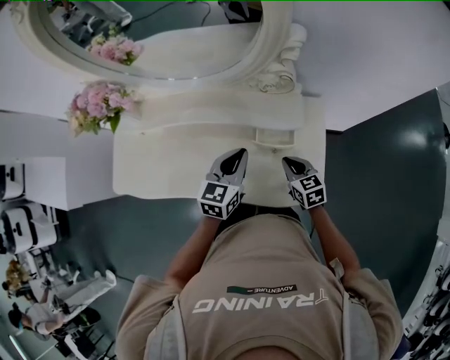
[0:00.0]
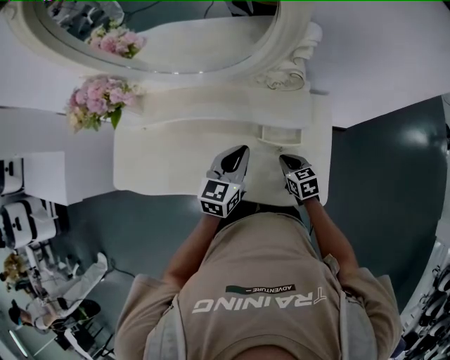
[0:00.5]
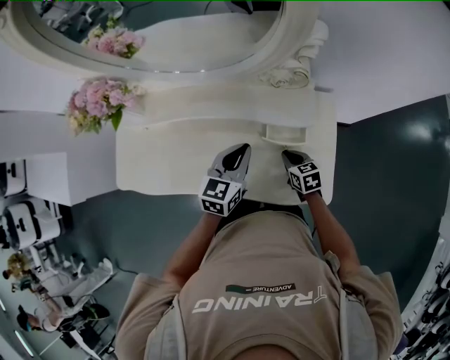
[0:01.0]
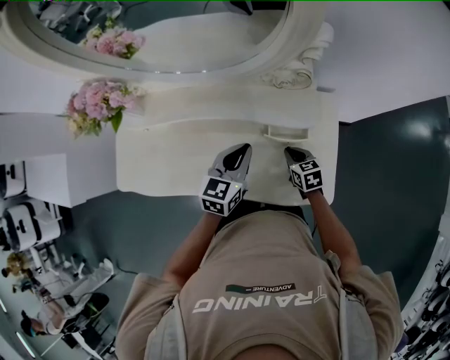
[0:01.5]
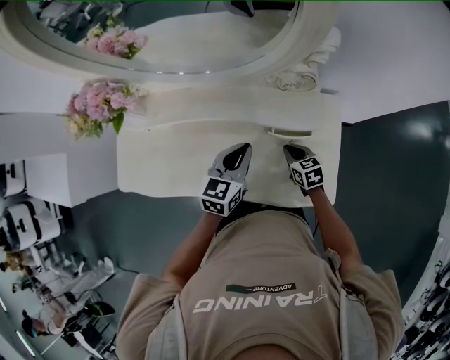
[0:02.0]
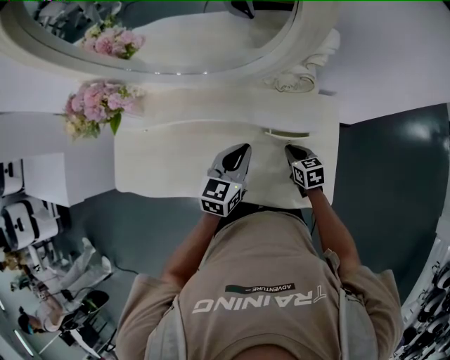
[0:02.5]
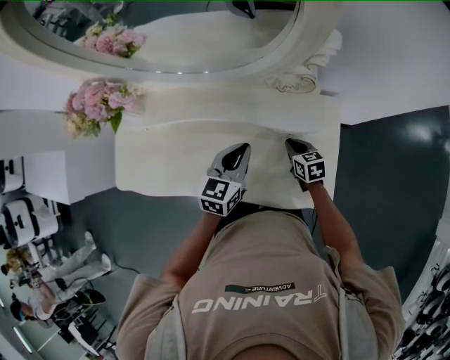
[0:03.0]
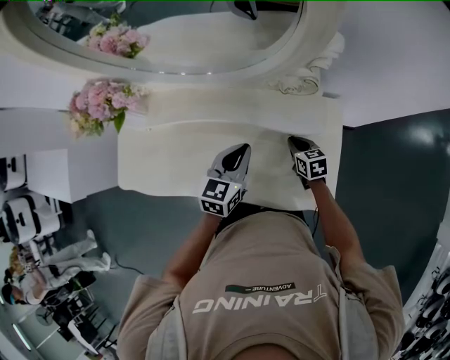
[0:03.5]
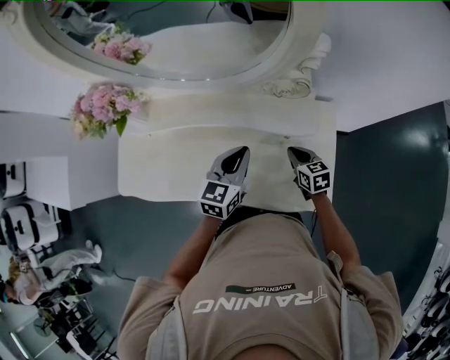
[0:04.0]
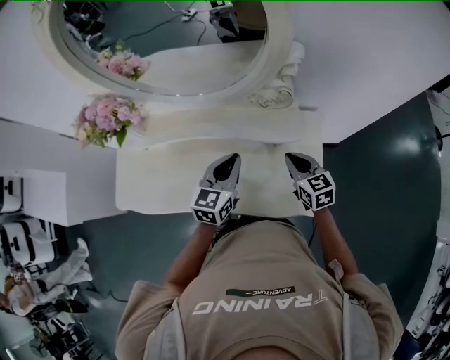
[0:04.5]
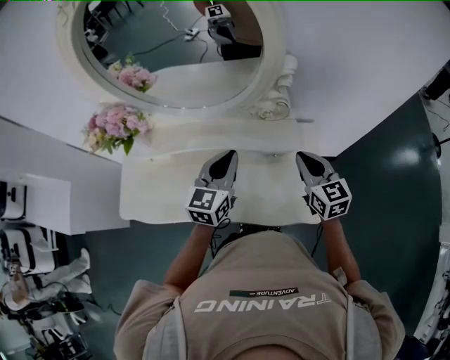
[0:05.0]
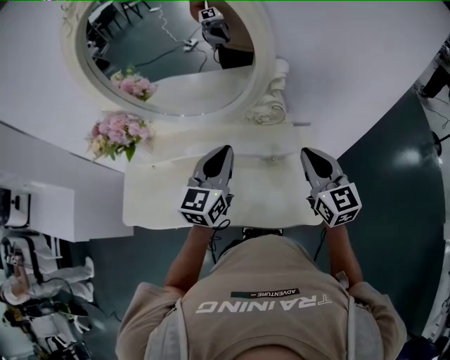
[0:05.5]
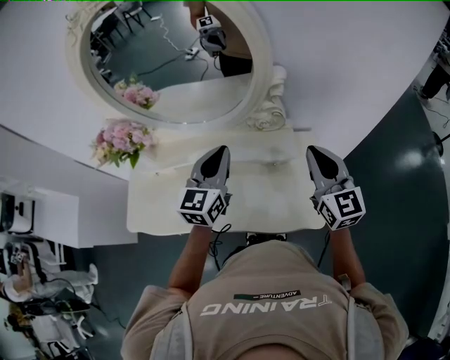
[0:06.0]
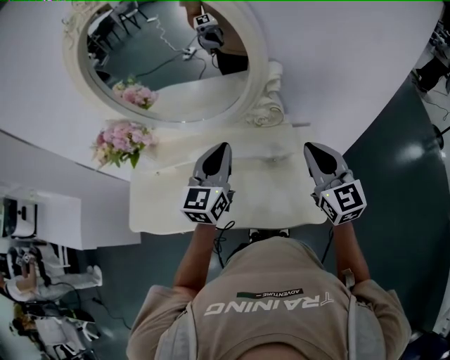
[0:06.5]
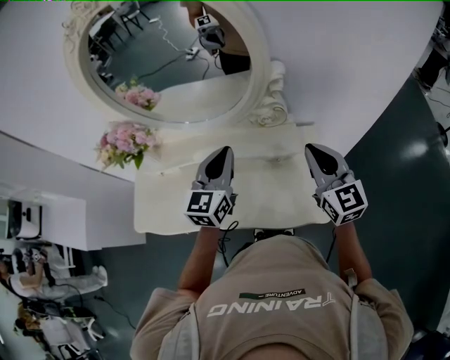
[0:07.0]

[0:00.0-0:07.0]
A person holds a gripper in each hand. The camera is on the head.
0:00.0 to 0:02.0: The right gripper is displaced downward and forward by some 10 cm.
0:02.0 to 0:03.5: The grippers stay close to where they were, moving slightly.
0:03.5 to 0:05.0: The left gripper heads upward, covering about 10 cm; the right gripper heads upward, covering roughly 25 cm, and turns by about 30 degrees.
0:05.0 to 0:07.0: The right gripper goes some 10 cm upward. Meanwhile the left gripper travels upward by about 5 cm.

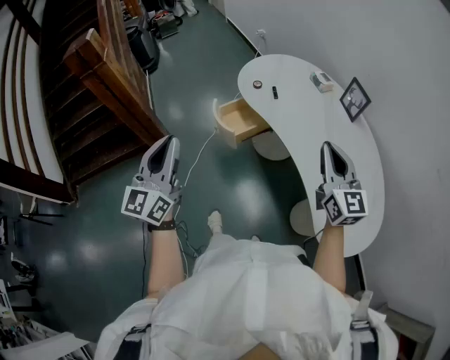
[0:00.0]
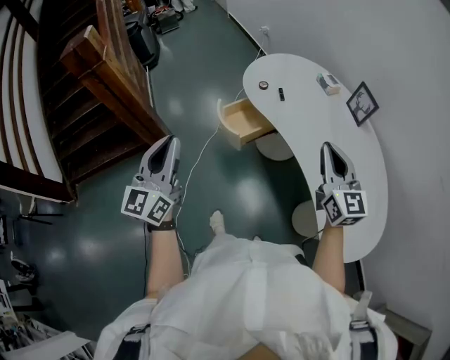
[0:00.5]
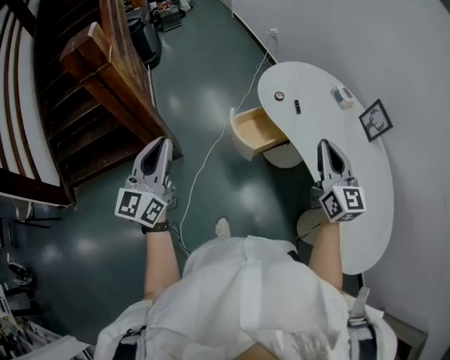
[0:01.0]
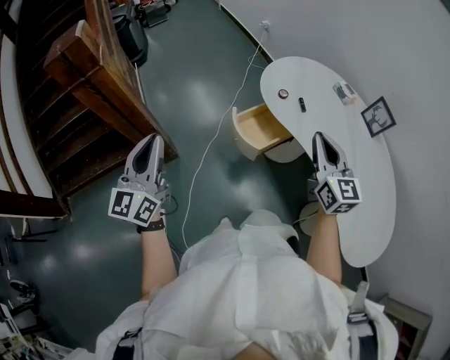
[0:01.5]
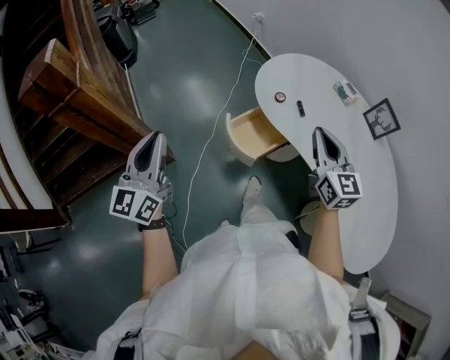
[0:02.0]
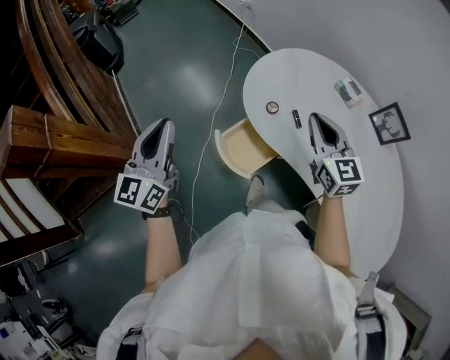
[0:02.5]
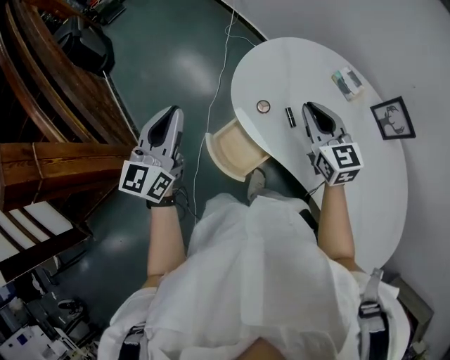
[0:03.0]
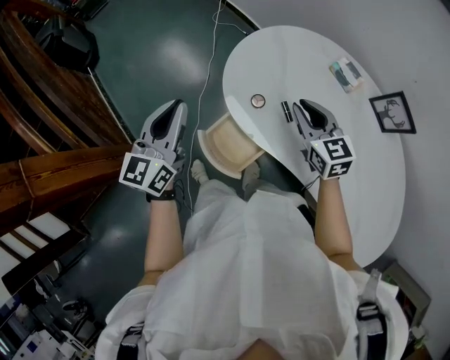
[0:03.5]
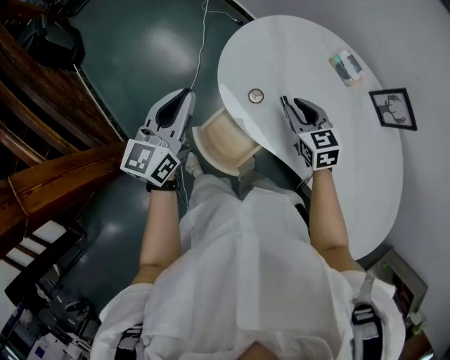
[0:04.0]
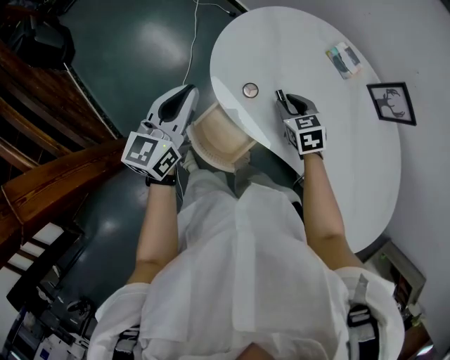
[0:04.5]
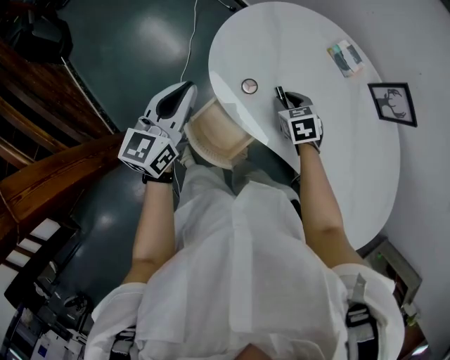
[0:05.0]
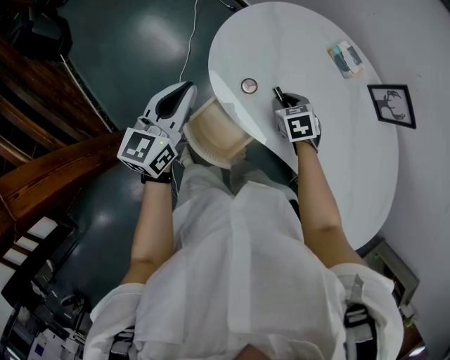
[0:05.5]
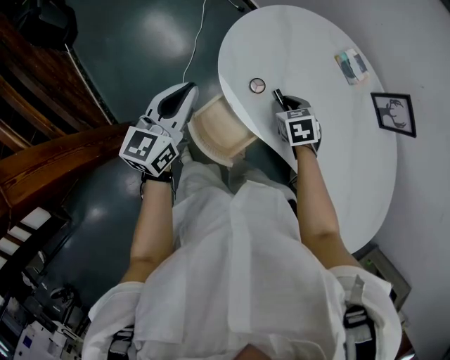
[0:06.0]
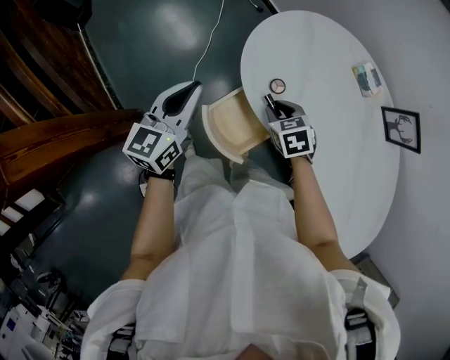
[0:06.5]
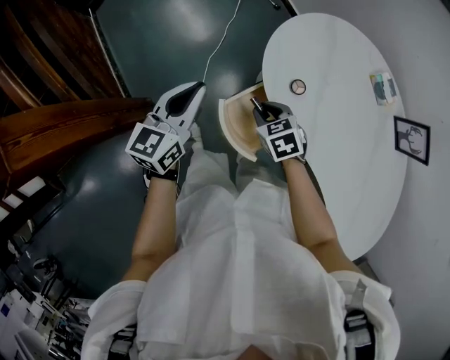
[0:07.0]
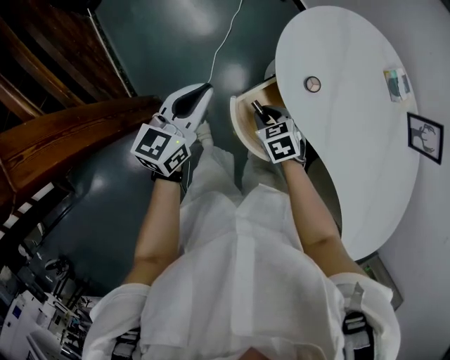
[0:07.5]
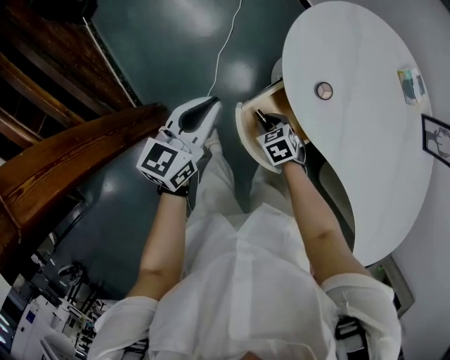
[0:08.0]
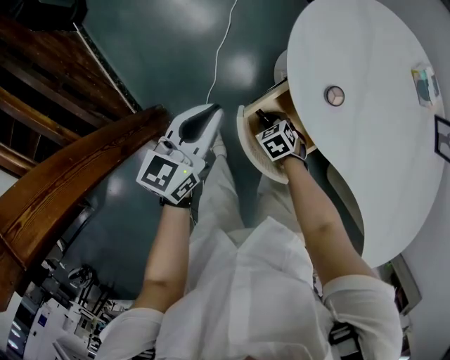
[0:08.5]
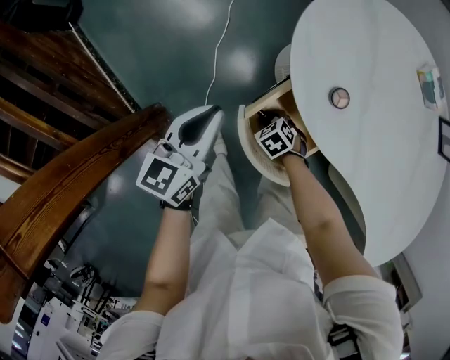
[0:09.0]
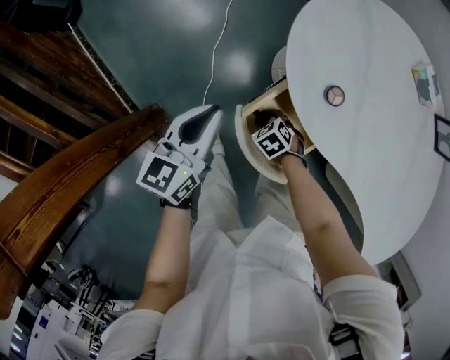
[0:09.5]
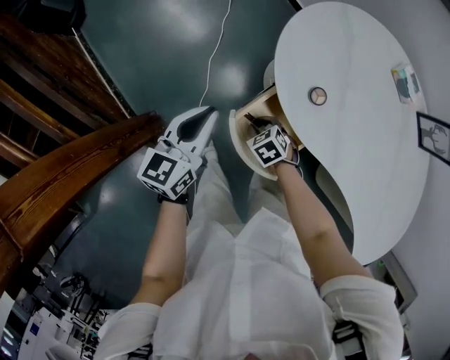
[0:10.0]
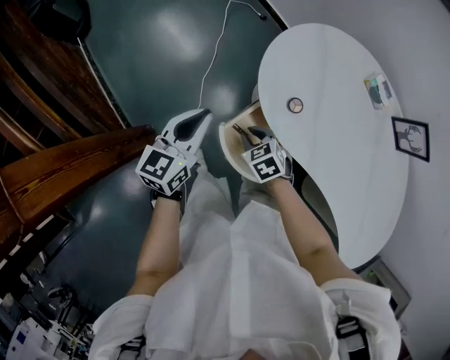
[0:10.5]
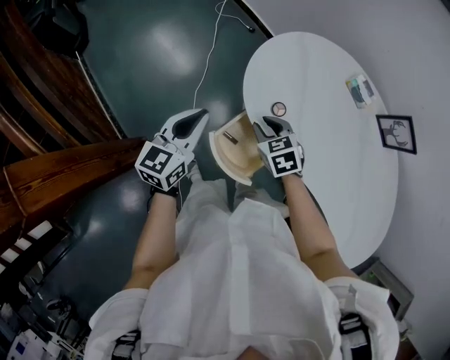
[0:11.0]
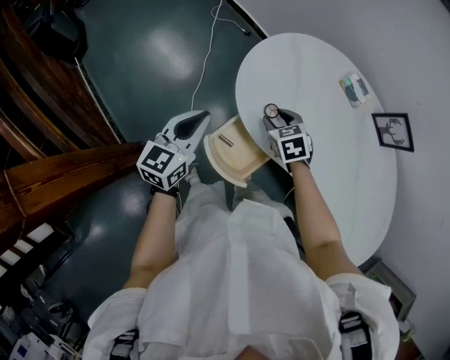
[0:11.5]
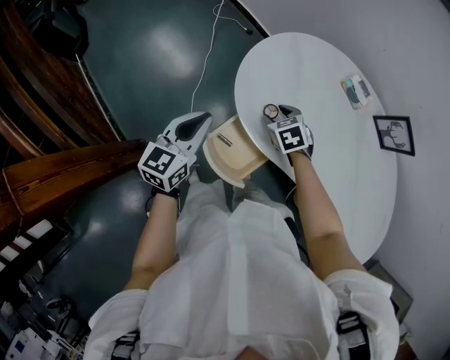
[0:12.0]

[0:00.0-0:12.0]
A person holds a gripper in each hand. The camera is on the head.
0:00.0 to 0:02.0: The grippers both shift forward and to the left by some 30 cm.
0:02.0 to 0:04.0: The left gripper goes about 40 cm forward and to the right, and swivels approximately 30 degrees. Meanwhile the right gripper is displaced forward and downward by about 30 cm, and rotates roughly 30 degrees.
0:04.0 to 0:06.0: The right gripper goes about 10 cm downward, and swivels approximately 20 degrees. The left gripper travels downward by some 5 cm.
0:06.0 to 0:08.0: The right gripper goes roughly 25 cm to the left and downward. The left gripper moves to the left and downward, about 15 cm.
0:08.0 to 0:10.0: The right gripper moves about 10 cm downward and comes back.
0:10.0 to 0:12.0: The right gripper goes approximately 25 cm upward, to the right and forward, and opens its fingers, while the left gripper moves upward and to the right, approximately 10 cm.

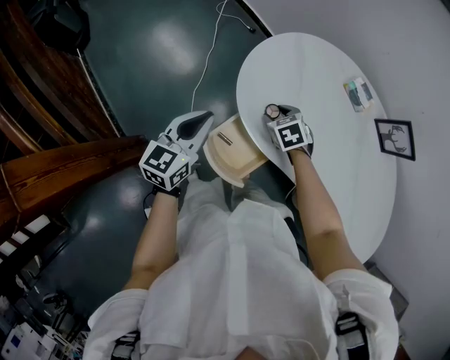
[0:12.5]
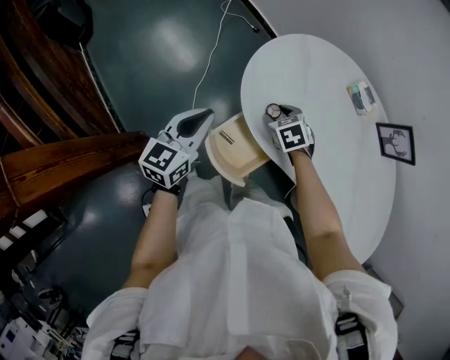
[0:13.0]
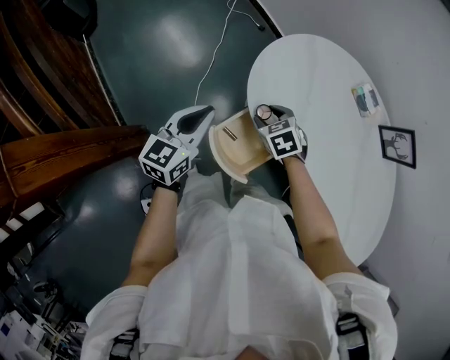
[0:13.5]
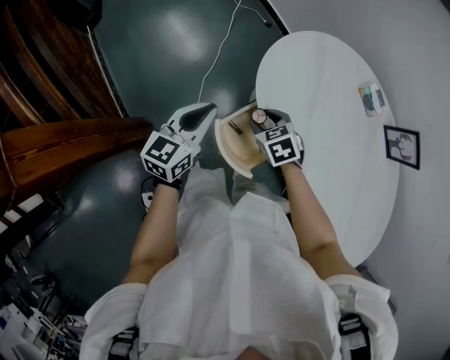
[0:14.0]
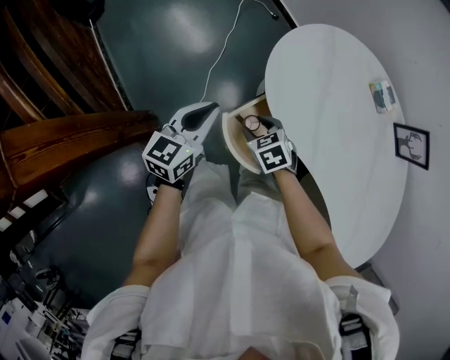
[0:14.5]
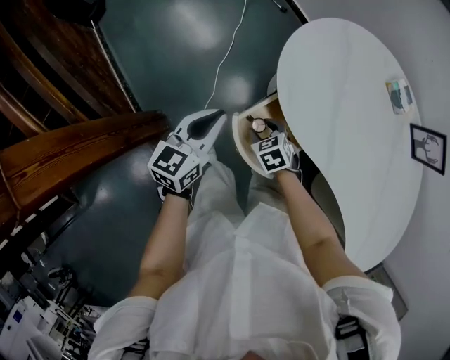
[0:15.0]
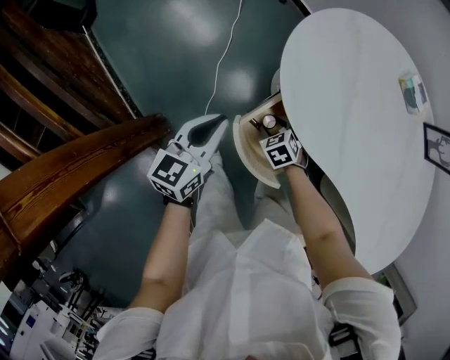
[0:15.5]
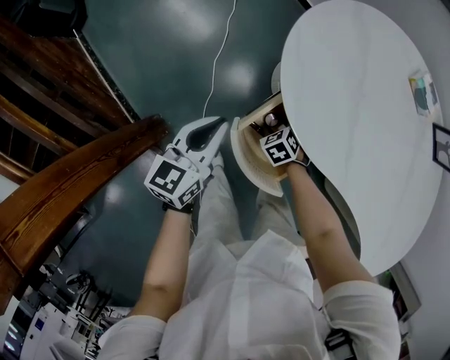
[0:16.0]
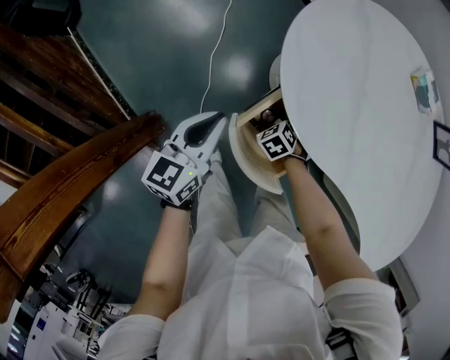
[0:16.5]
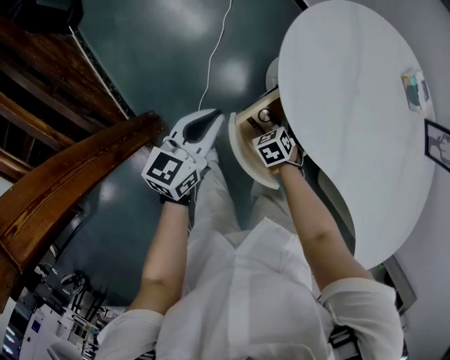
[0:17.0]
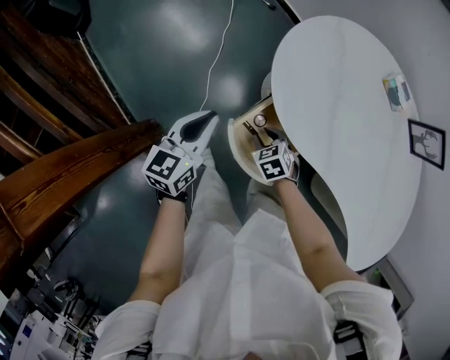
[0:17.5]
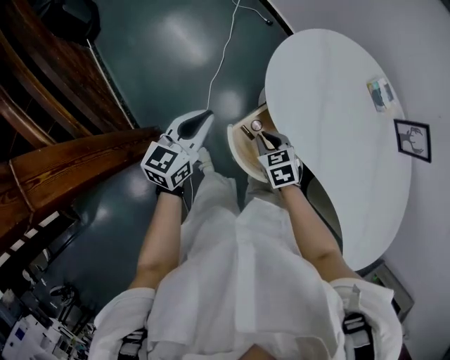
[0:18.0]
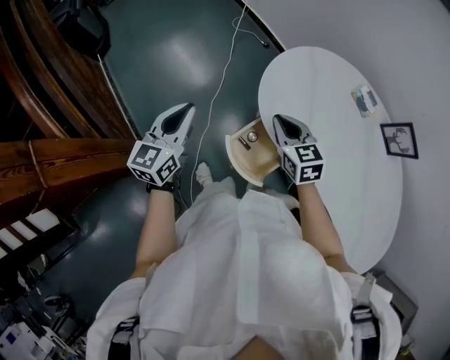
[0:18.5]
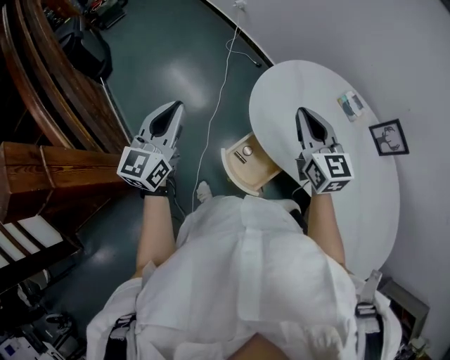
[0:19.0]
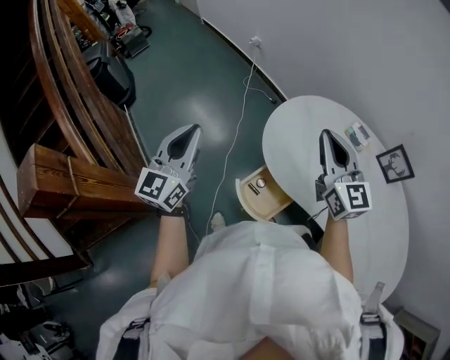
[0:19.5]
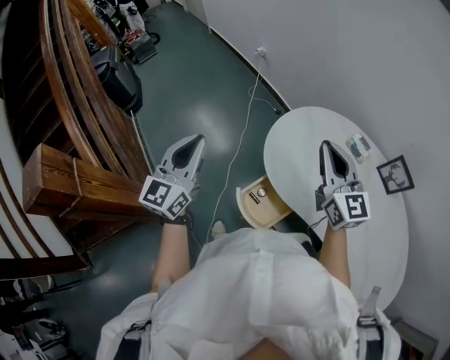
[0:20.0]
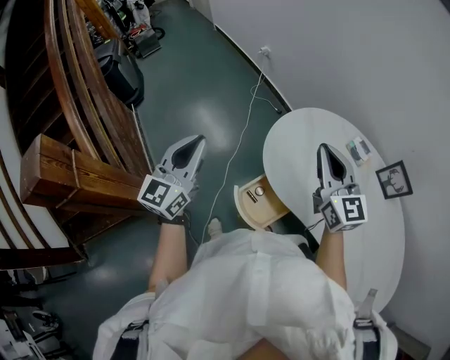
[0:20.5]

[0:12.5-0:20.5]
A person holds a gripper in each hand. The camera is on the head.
0:12.5 to 0:14.5: The right gripper shifts approximately 15 cm to the left and backward, while the left gripper shifts some 5 cm to the left.
0:14.5 to 0:16.5: The left gripper shifts approximately 10 cm downward. Meanwhile the right gripper is displaced downward by some 20 cm.
0:16.5 to 0:18.5: The right gripper moves upward, about 40 cm, points its fingers some 40 degrees further upward, and closes up; the left gripper shifts approximately 20 cm upward.
0:18.5 to 0:20.5: The right gripper is displaced upward and to the right by about 25 cm, and tips its fingers upward by some 30 degrees, while the left gripper goes approximately 15 cm upward.
